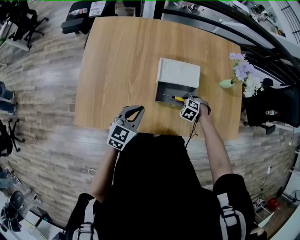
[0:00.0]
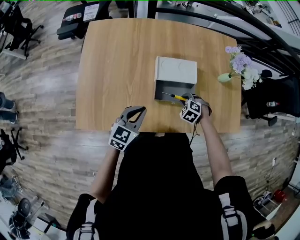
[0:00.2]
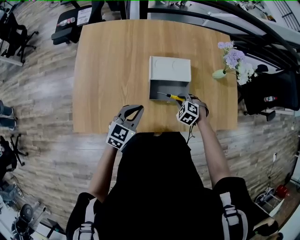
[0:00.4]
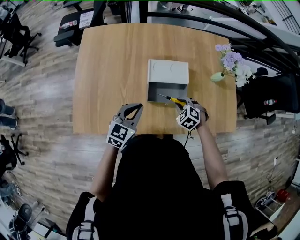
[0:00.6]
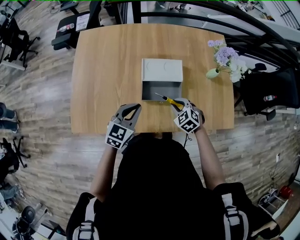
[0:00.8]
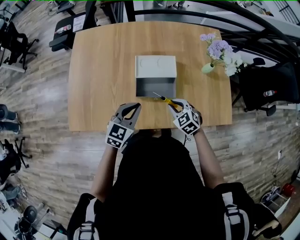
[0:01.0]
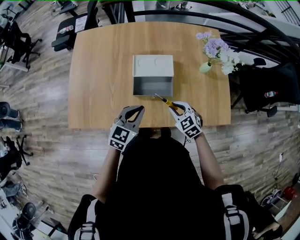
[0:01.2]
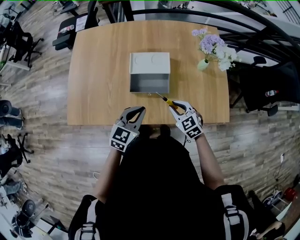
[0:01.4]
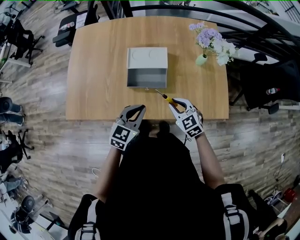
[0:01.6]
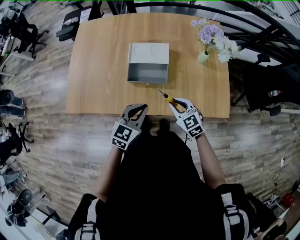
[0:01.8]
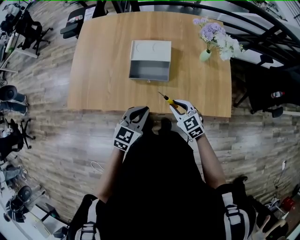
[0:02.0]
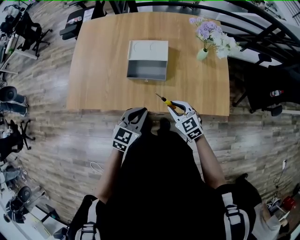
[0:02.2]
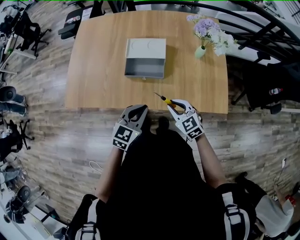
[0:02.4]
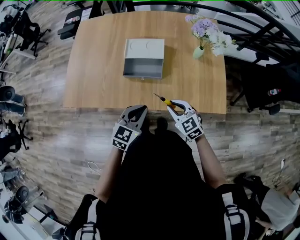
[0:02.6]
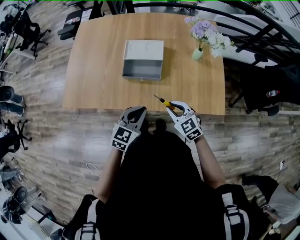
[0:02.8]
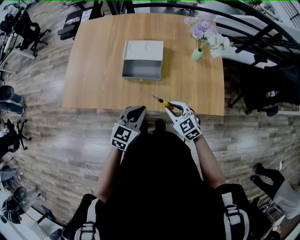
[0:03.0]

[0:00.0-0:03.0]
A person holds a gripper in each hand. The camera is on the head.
0:00.0 to 0:01.6: The left gripper ends up roughly 20 cm from where it was. Meanwhile the right gripper moves about 25 cm, and tilts its fingers about 40 degrees upward.
0:01.6 to 0:03.0: Both grippers travel together backward, some 5 cm.

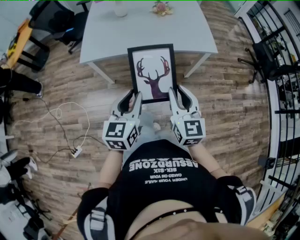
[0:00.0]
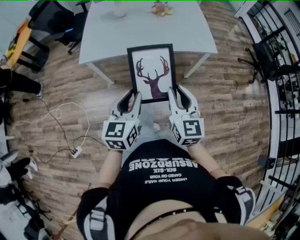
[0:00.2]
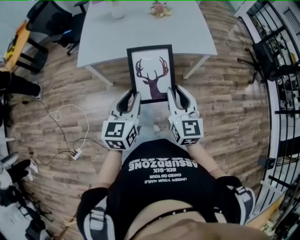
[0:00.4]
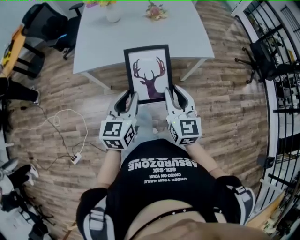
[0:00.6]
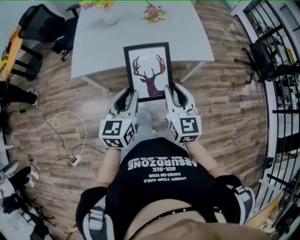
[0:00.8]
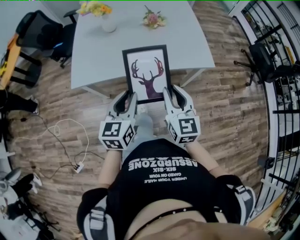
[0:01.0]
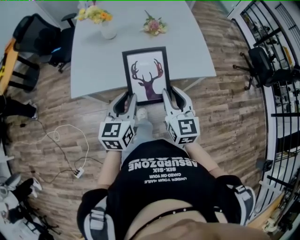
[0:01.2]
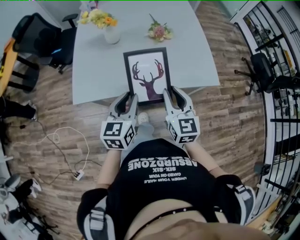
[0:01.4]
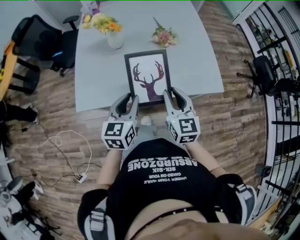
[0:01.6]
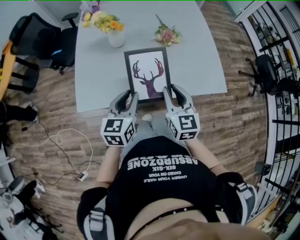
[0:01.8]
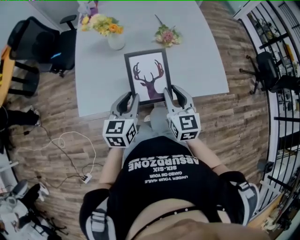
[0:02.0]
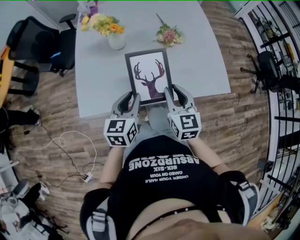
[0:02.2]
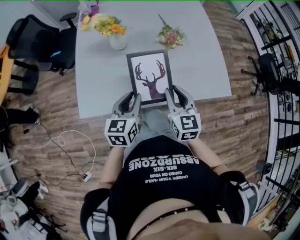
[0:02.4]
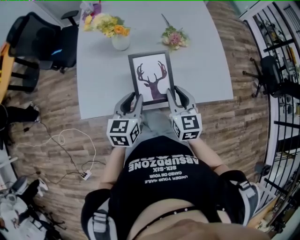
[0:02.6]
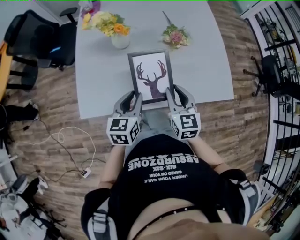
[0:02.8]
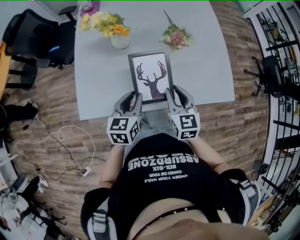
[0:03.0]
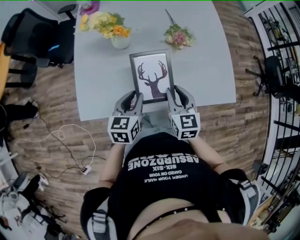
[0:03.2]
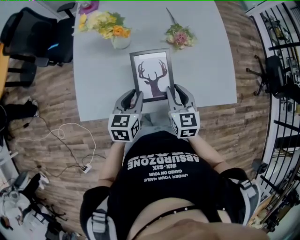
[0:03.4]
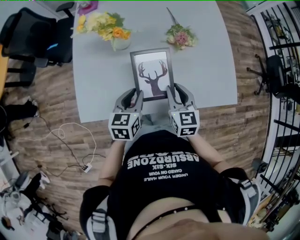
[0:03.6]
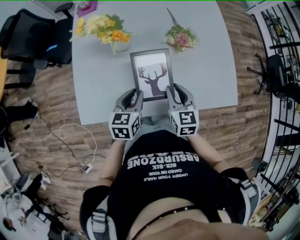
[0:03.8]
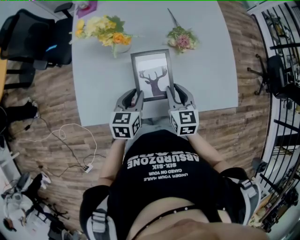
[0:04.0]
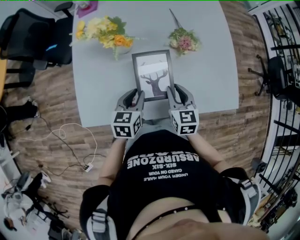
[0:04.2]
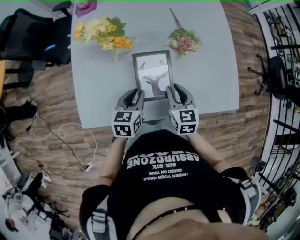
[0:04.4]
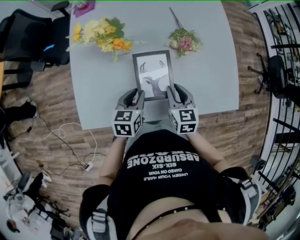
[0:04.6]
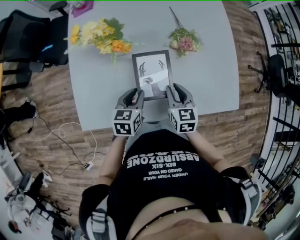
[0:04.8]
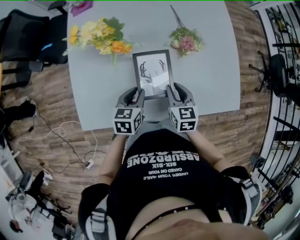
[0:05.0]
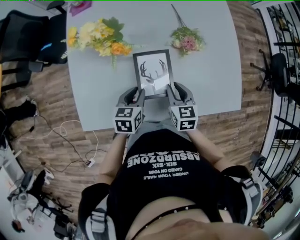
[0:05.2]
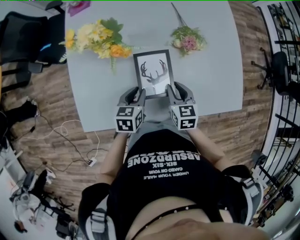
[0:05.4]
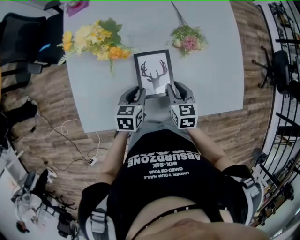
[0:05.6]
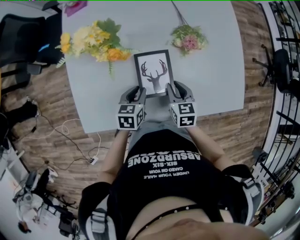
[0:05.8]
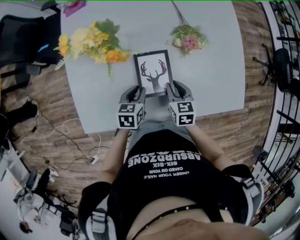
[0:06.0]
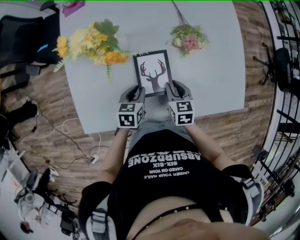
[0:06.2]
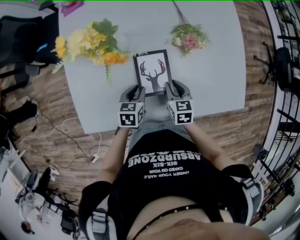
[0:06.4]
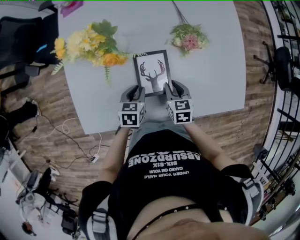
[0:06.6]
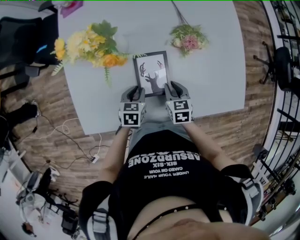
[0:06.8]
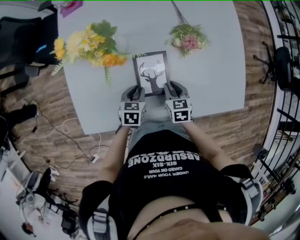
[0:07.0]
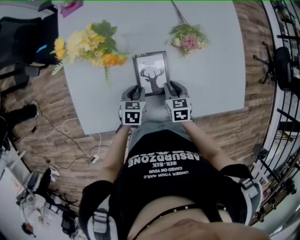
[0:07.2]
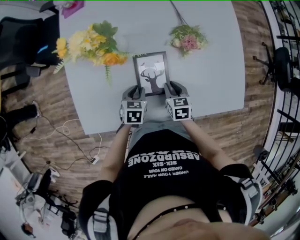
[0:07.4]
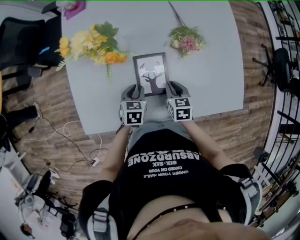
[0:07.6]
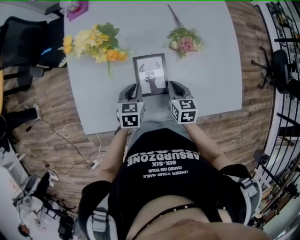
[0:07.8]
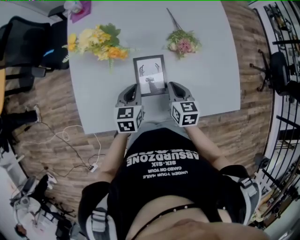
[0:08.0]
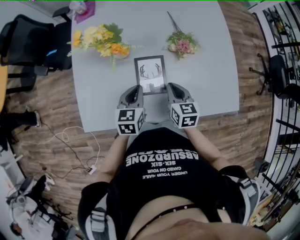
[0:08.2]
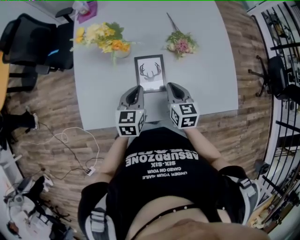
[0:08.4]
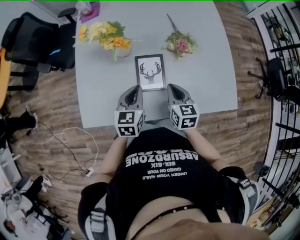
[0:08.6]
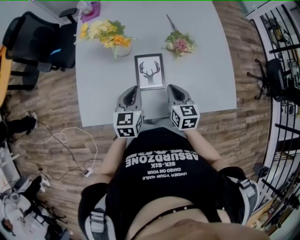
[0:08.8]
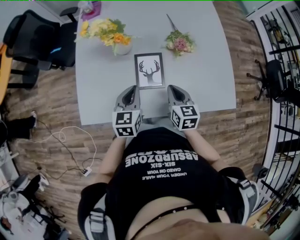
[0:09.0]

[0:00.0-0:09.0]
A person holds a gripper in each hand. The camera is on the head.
0:00.0 to 0:01.6: The two grippers go about 30 cm forward.
0:01.6 to 0:03.0: The two grippers go some 10 cm forward and downward.
0:03.0 to 0:04.4: The two grippers go approximately 10 cm forward and downward.
0:04.4 to 0:06.0: Both grippers travel together downward, approximately 10 cm.
0:06.0 to 0:07.6: There are only small adjustments of the grippers.
0:07.6 to 0:09.0: The left gripper goes roughly 15 cm upward, turns by roughly 30 degrees, and closes up; the right gripper shifts about 15 cm upward and backward.

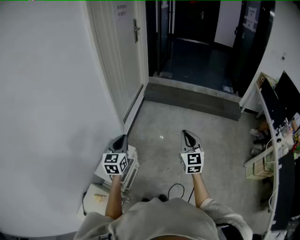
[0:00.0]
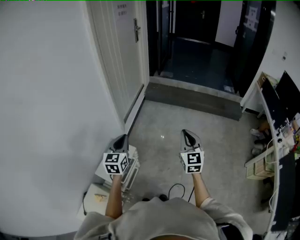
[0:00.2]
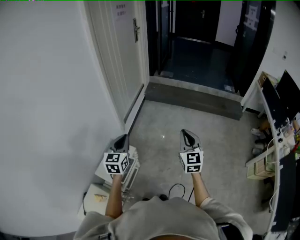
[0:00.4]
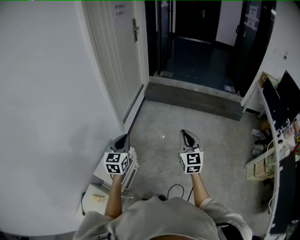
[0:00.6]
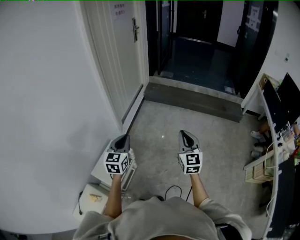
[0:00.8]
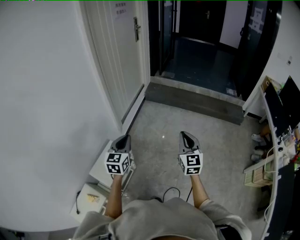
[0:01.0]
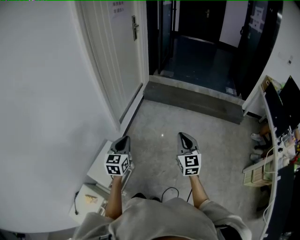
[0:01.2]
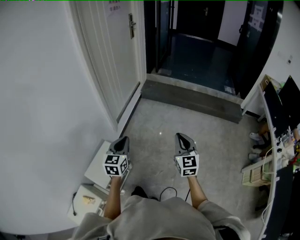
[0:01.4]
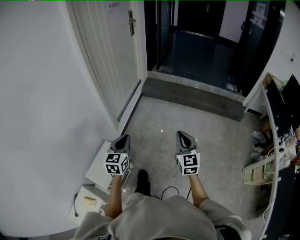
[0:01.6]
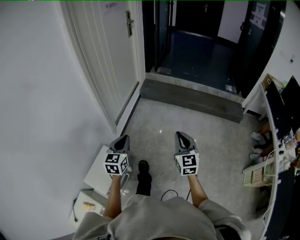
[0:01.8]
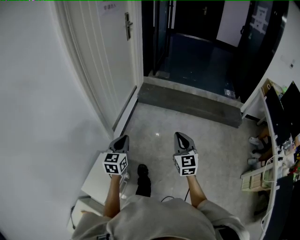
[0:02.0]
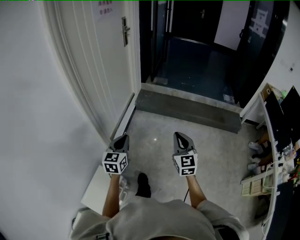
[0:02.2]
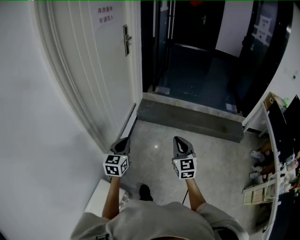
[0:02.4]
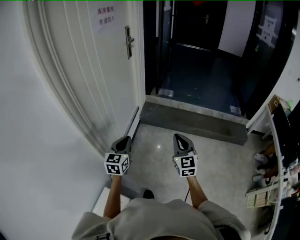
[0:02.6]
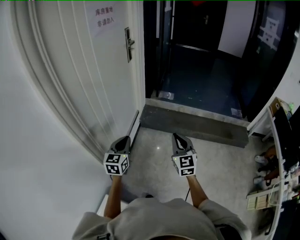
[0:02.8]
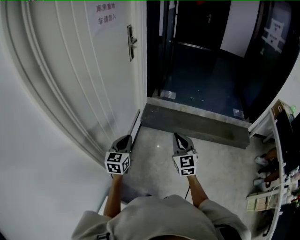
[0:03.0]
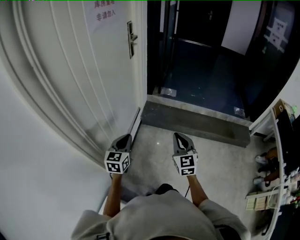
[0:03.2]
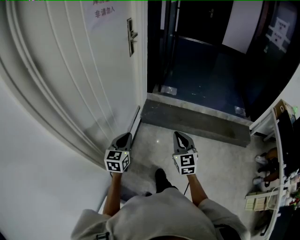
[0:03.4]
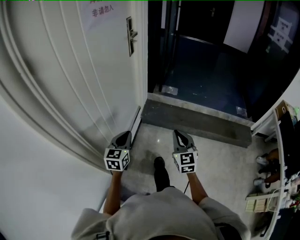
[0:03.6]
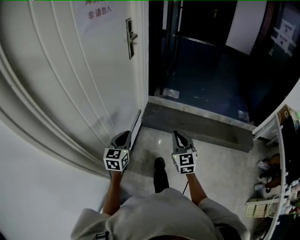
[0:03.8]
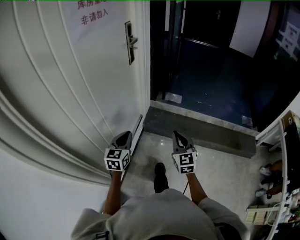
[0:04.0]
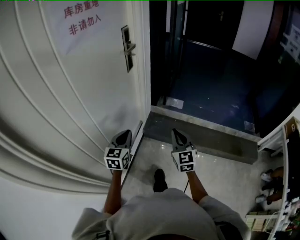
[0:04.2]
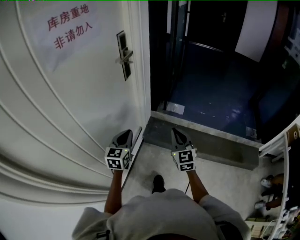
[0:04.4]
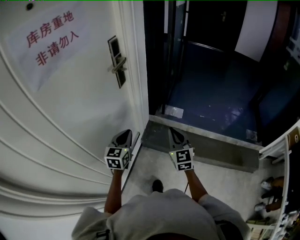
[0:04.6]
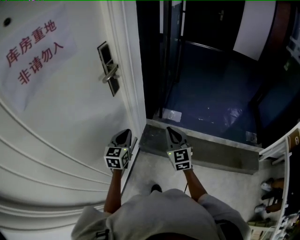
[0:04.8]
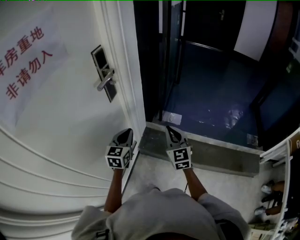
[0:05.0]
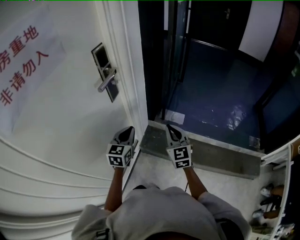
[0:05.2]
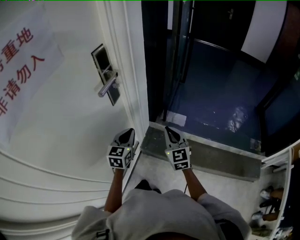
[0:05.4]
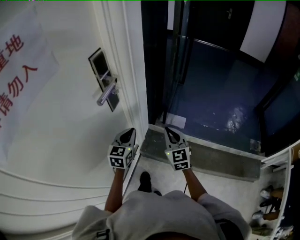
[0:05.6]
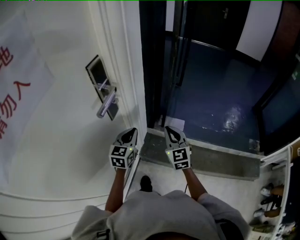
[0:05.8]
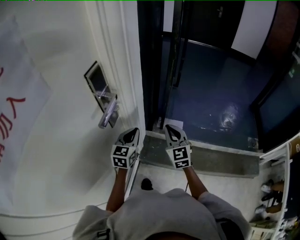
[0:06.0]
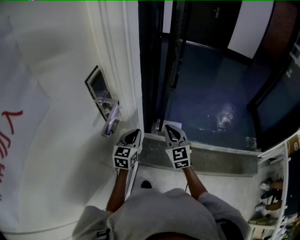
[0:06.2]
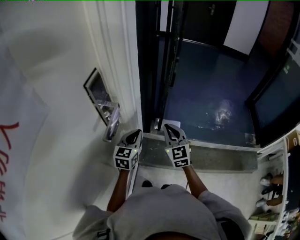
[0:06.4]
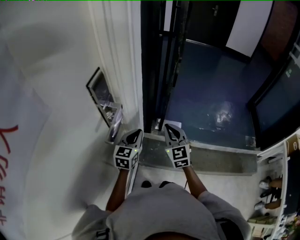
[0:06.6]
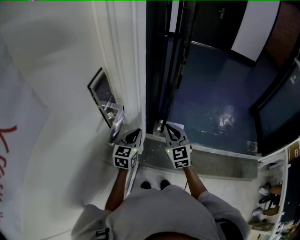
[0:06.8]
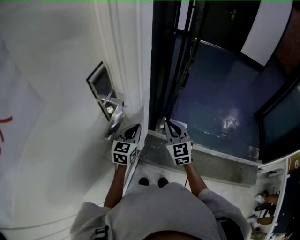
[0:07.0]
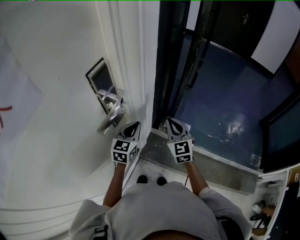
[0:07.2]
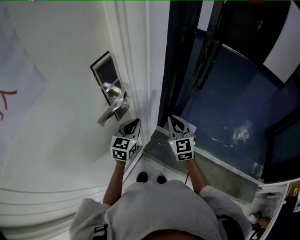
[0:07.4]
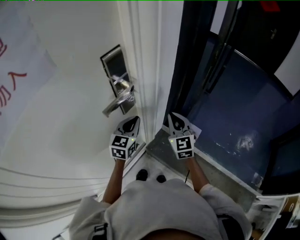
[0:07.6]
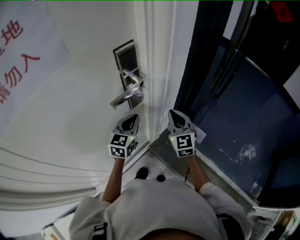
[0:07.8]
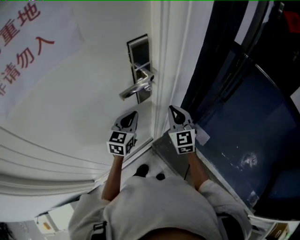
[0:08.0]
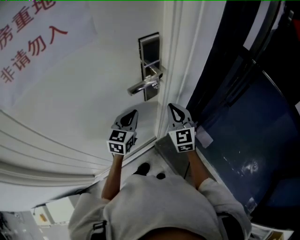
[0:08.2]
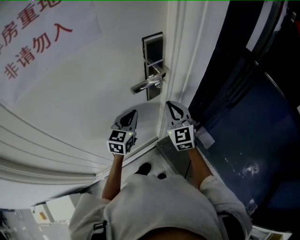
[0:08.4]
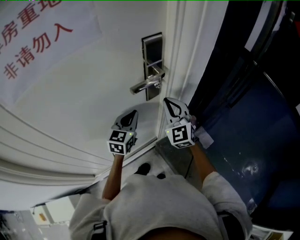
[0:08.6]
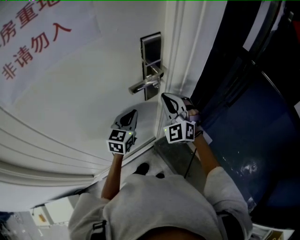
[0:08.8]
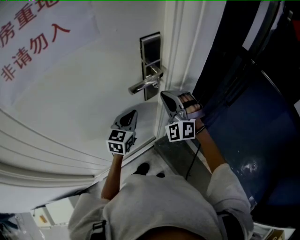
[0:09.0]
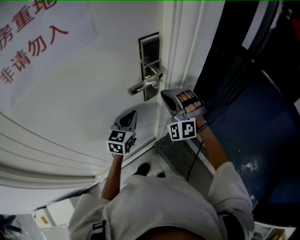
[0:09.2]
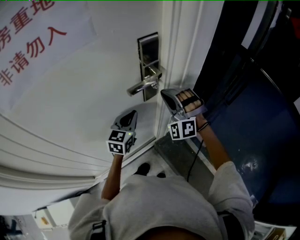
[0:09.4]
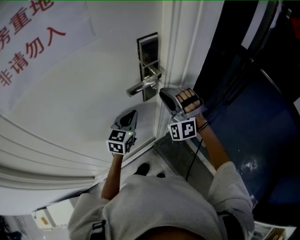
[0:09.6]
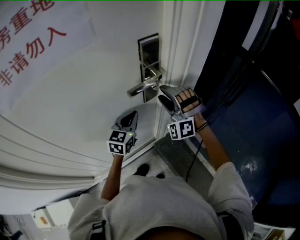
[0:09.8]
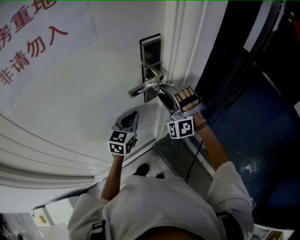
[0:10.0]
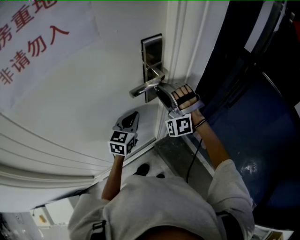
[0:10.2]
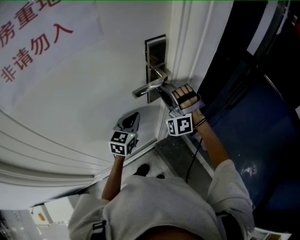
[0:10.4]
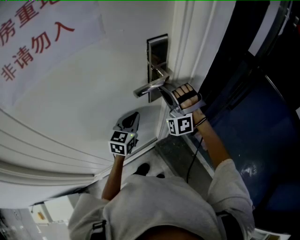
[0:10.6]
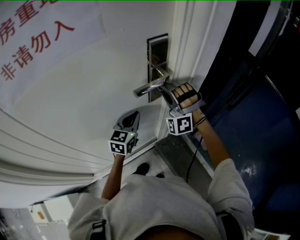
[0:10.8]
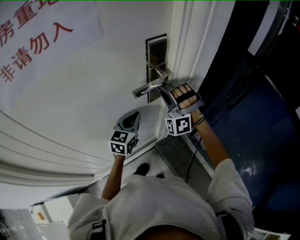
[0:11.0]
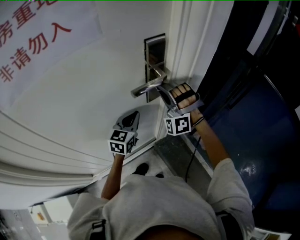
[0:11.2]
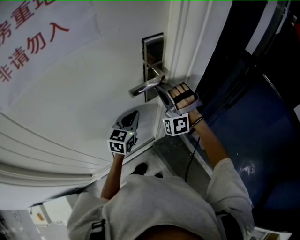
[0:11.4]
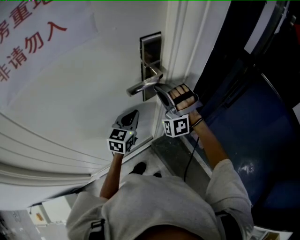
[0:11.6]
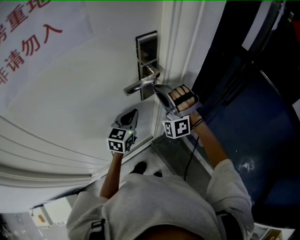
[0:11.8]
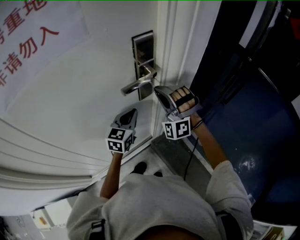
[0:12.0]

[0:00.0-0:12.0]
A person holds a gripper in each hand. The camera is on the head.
0:00.0 to 0:01.6: The left gripper heads forward and to the right, covering roughly 15 cm. The right gripper moves forward, some 10 cm.
0:01.6 to 0:03.0: Both grippers are carried forward, about 50 cm.
0:03.0 to 0:04.4: The grippers both shift forward by approximately 35 cm.
0:04.4 to 0:06.0: Both grippers travel together forward, some 35 cm.
0:06.0 to 0:07.6: The right gripper shifts by some 10 cm, and rotates some 20 degrees. The left gripper shifts by about 5 cm, and rotates approximately 20 degrees.
0:07.6 to 0:09.0: The left gripper moves to the left, about 10 cm, while the right gripper moves to the left and upward, some 15 cm, and rolls counterclockwise, seen from behind, by approximately 60 degrees.
0:09.0 to 0:10.4: The right gripper turns by roughly 20 degrees, and opens.
0:10.4 to 0:12.0: The right gripper closes up.
